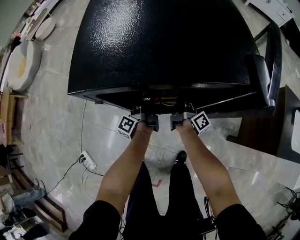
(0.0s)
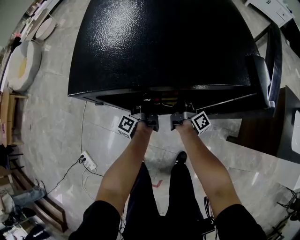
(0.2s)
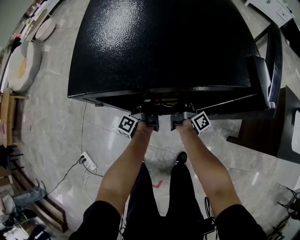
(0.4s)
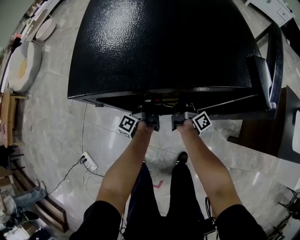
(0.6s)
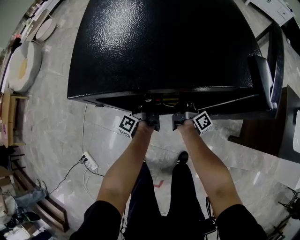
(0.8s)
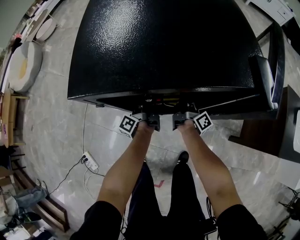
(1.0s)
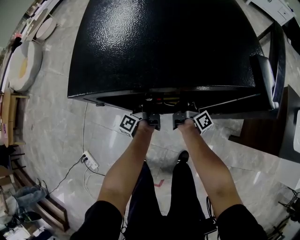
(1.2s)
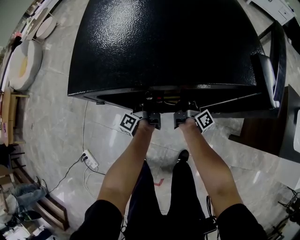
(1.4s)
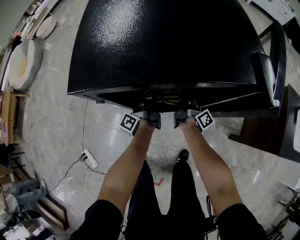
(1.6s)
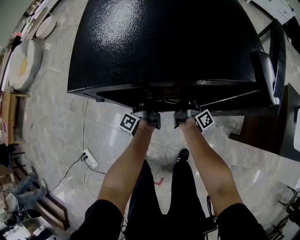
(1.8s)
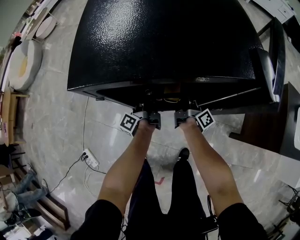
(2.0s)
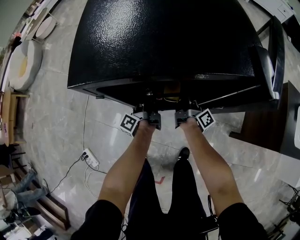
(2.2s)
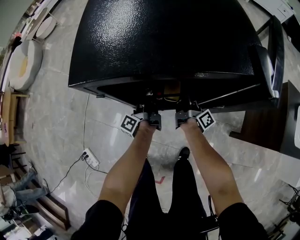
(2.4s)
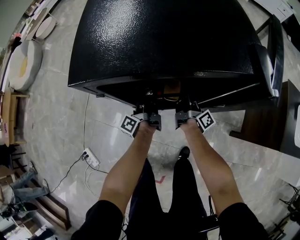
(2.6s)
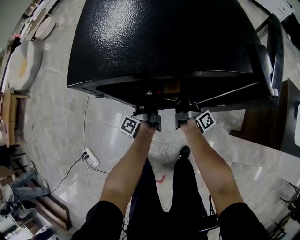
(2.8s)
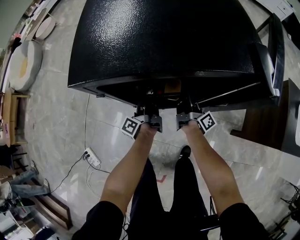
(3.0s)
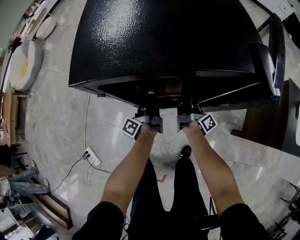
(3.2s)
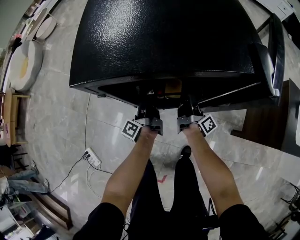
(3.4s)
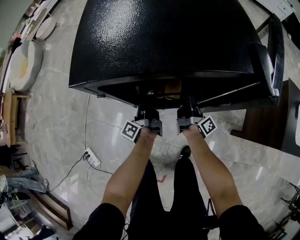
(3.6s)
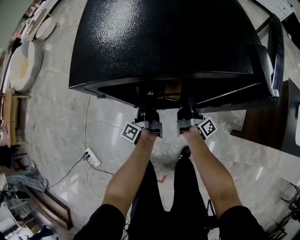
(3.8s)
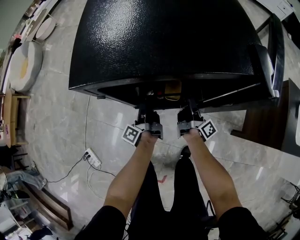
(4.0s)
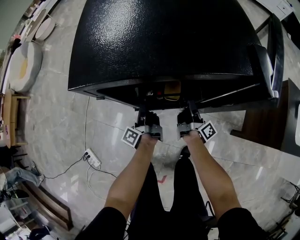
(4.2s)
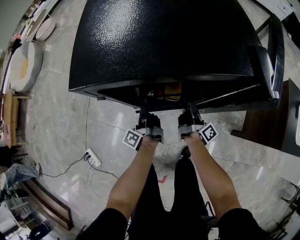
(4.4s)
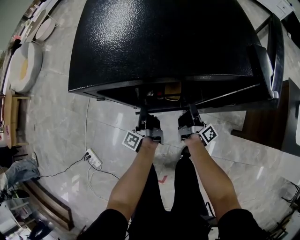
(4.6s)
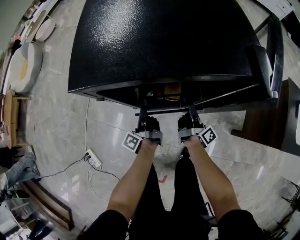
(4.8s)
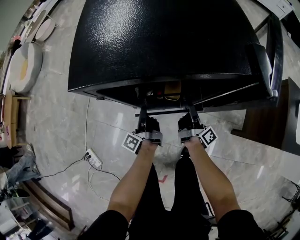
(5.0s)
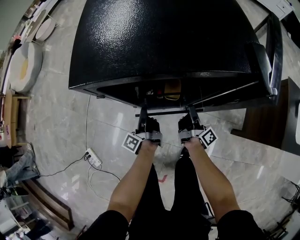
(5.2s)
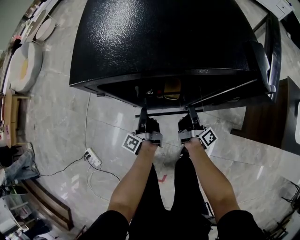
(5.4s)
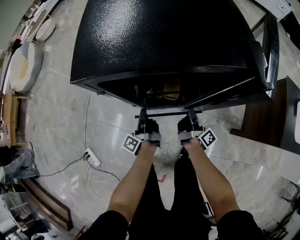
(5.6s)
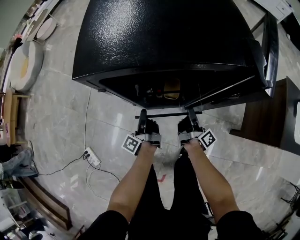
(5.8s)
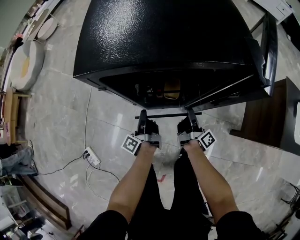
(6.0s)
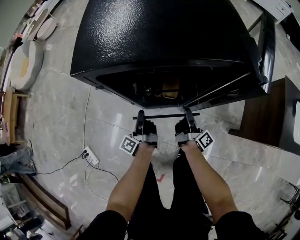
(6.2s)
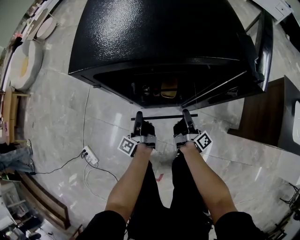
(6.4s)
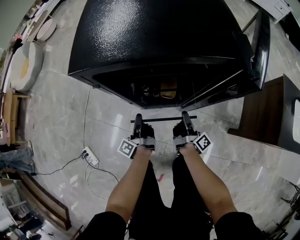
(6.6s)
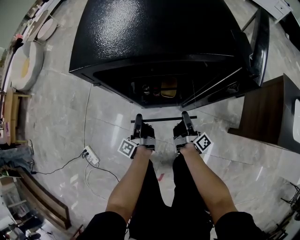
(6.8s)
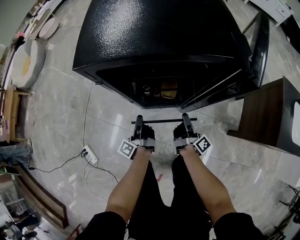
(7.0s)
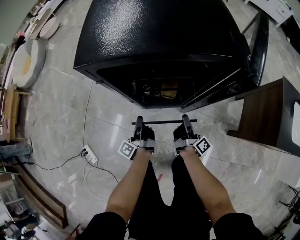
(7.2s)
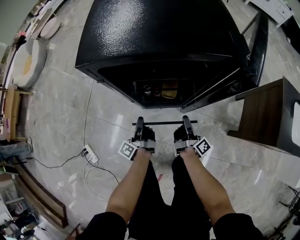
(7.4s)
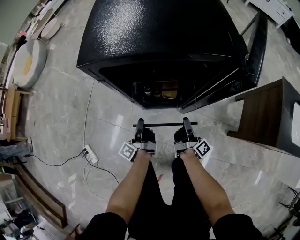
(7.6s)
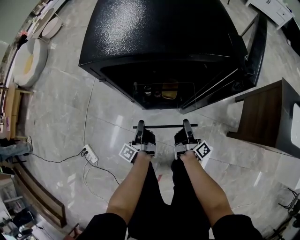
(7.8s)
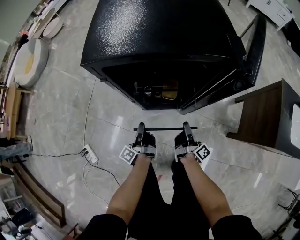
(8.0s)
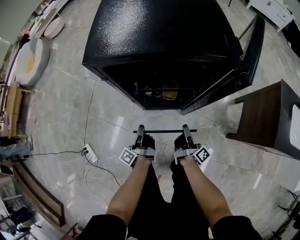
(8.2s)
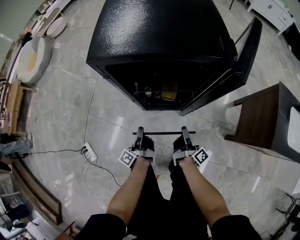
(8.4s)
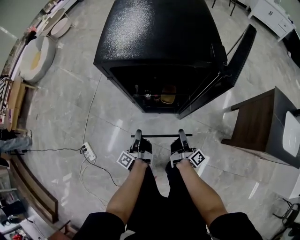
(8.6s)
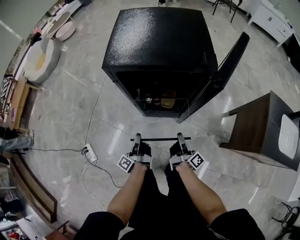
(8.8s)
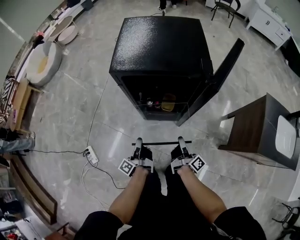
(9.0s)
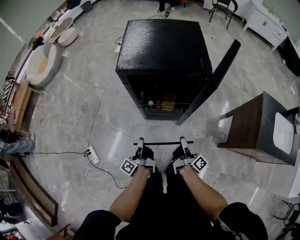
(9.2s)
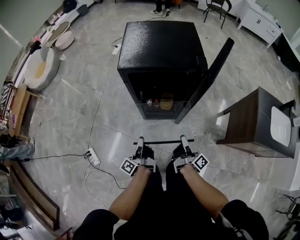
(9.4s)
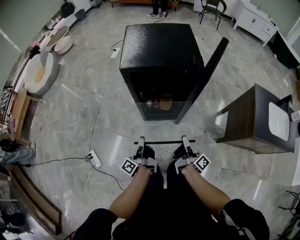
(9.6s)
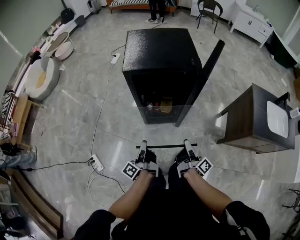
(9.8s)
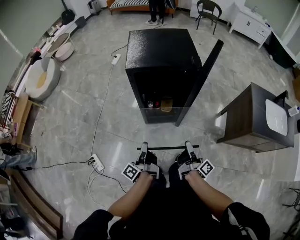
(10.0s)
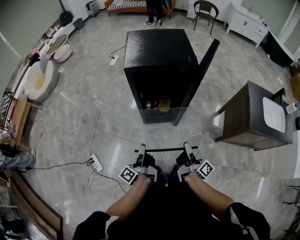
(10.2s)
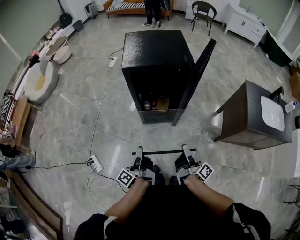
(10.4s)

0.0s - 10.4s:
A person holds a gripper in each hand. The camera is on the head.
0.0s - 1.4s: The left gripper closes.
1.4s - 3.0s: The grippers make only small movements.
3.0s - 4.4s: The grippers make only small movements.
4.4s - 6.0s: The right gripper heads backward, covering roughly 5 cm.
6.0s - 7.4s: The grippers both shift backward by roughly 5 cm.
7.4s - 9.0s: The right gripper shifts approximately 15 cm upward and backward. The left gripper moves backward and upward, approximately 15 cm.
9.0s - 10.4s: The left gripper heads upward and backward, covering some 20 cm. The right gripper goes roughly 25 cm backward and upward.

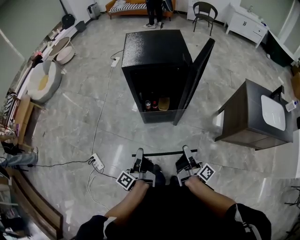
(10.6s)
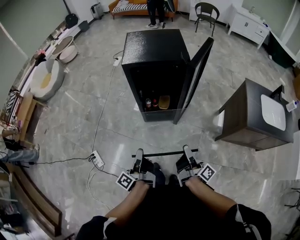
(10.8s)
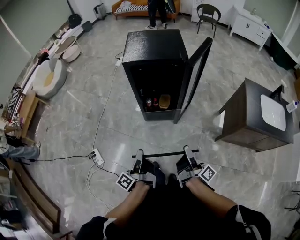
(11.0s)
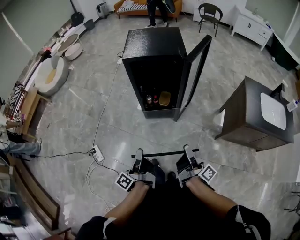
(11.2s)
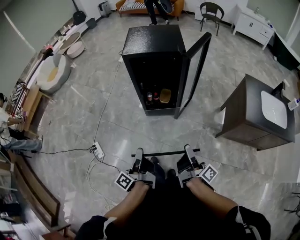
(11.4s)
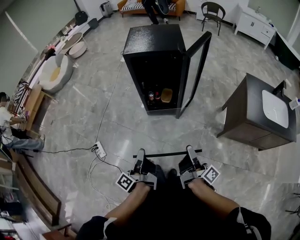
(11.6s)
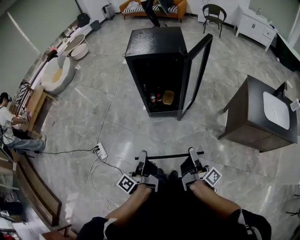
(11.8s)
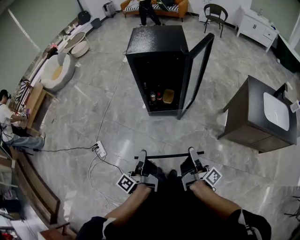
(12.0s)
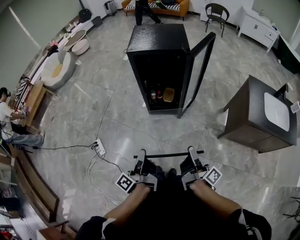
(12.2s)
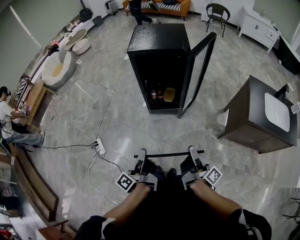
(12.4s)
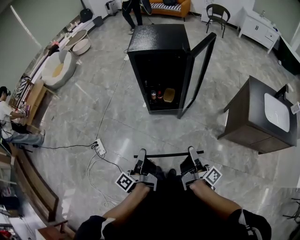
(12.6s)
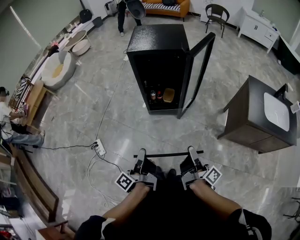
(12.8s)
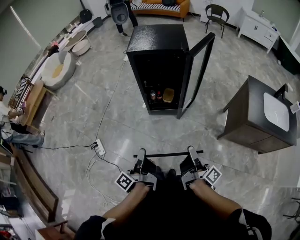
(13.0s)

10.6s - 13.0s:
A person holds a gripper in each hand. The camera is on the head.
10.6s - 11.8s: The right gripper travels backward and to the right by roughly 15 cm. The left gripper heads backward, covering about 15 cm.
11.8s - 13.0s: Both grippers stay about where they are.

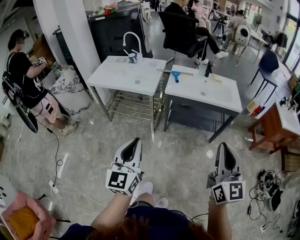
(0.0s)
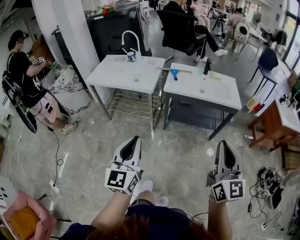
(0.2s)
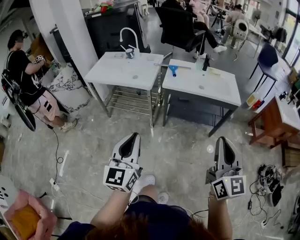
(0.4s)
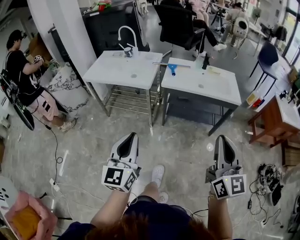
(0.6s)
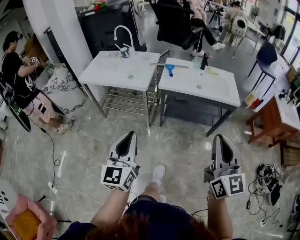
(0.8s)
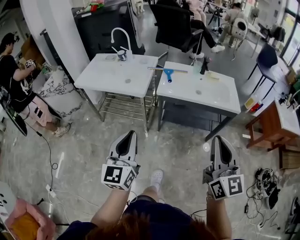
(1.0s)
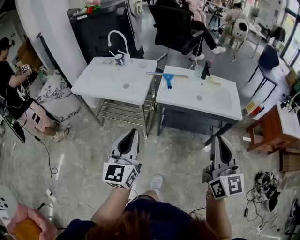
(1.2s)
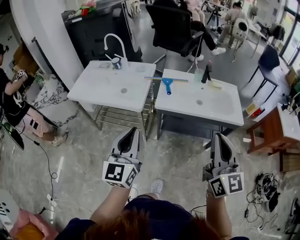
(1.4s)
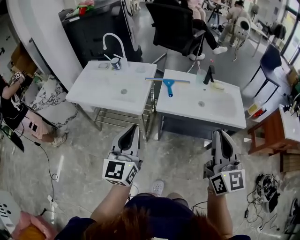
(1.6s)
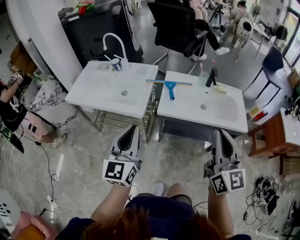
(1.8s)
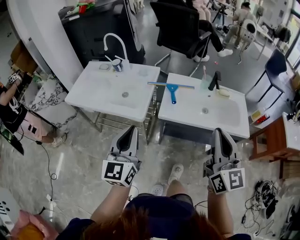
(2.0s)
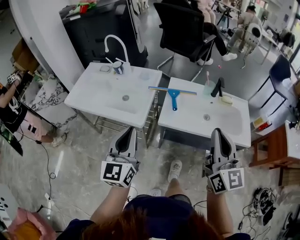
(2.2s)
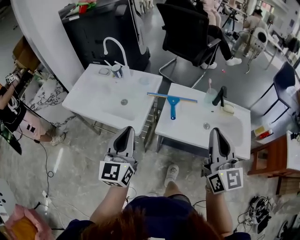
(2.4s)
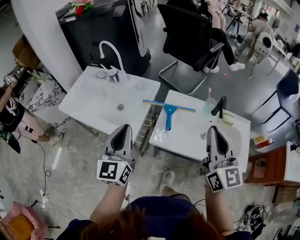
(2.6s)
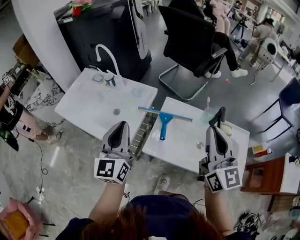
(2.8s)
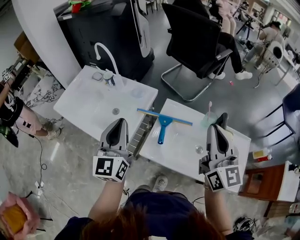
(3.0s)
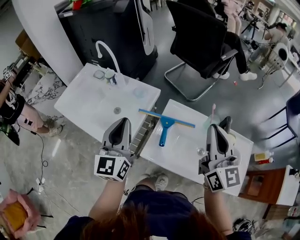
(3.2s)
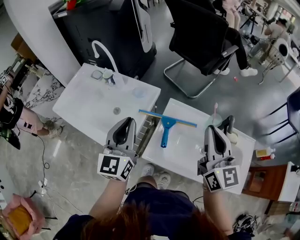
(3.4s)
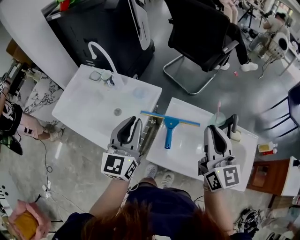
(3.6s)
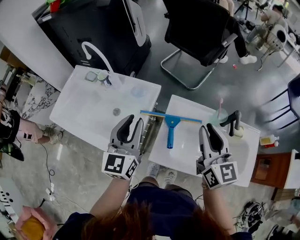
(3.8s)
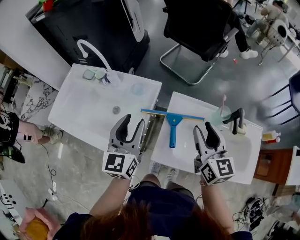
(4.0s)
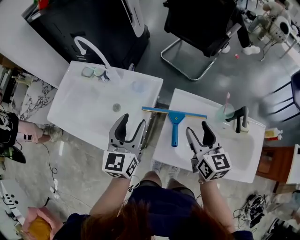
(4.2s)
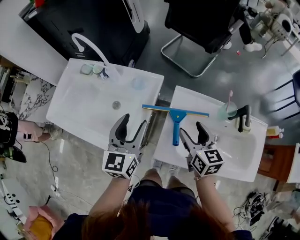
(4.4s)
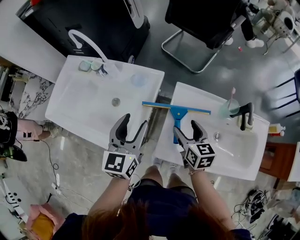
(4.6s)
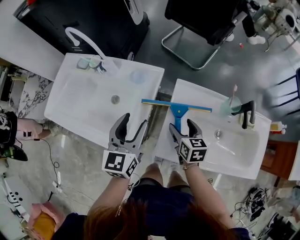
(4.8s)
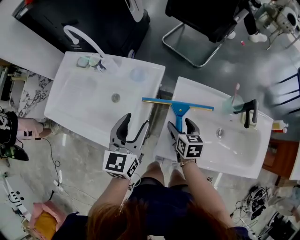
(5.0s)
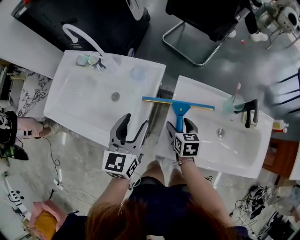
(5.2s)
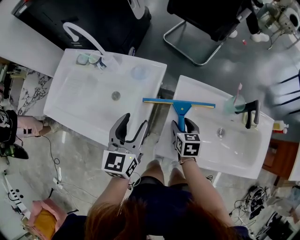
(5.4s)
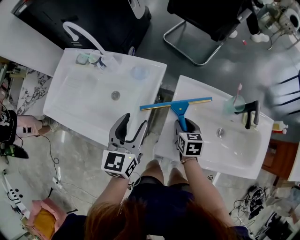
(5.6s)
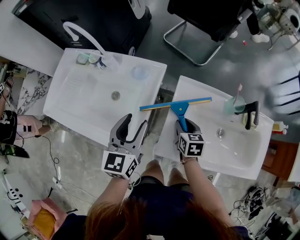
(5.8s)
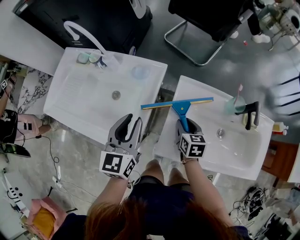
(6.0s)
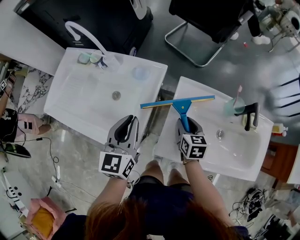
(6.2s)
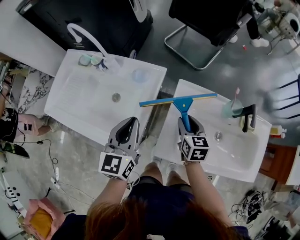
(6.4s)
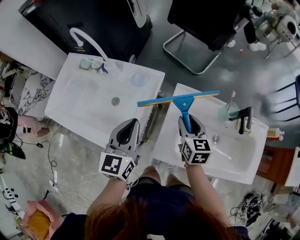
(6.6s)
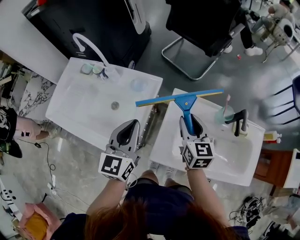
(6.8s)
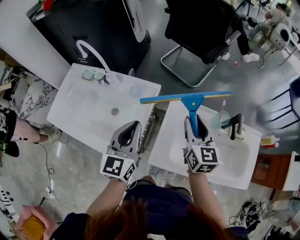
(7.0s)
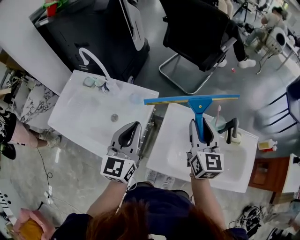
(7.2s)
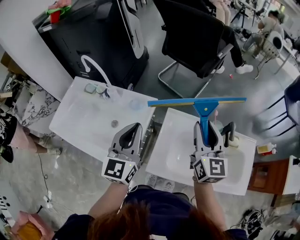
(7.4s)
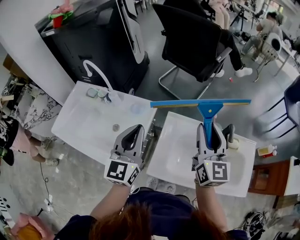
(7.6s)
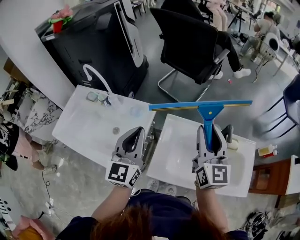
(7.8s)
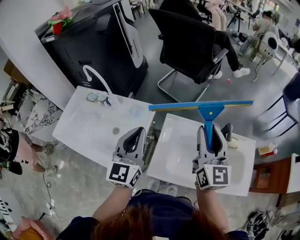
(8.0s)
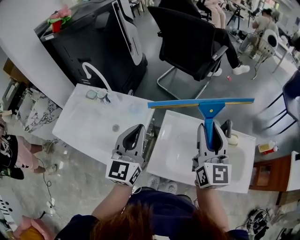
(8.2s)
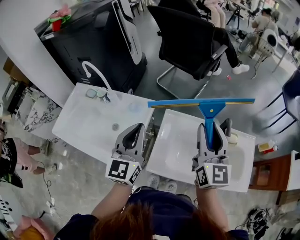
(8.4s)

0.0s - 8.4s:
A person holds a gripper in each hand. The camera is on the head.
0.0s - 1.4s: The two grippers go roughly 25 cm forward.
1.4s - 2.8s: Both grippers travel together forward, approximately 40 cm.
2.8s - 4.2s: The right gripper heads downward and forward, covering approximately 25 cm, rotates approximately 30 degrees, and opens. The left gripper goes about 20 cm forward and downward, and opens.
4.2s - 5.6s: The left gripper goes about 5 cm downward, while the right gripper moves downward, roughly 20 cm, and rotates about 30 degrees.
5.6s - 7.0s: The left gripper is displaced upward by roughly 10 cm, and closes up; the right gripper heads upward, covering about 25 cm, and tips its fingers upward by approximately 30 degrees.
7.0s - 8.4s: The left gripper heads upward, covering approximately 10 cm. Meanwhile the right gripper shifts some 15 cm upward and to the right, and swivels roughly 20 degrees.

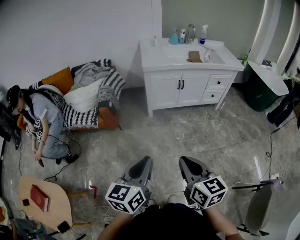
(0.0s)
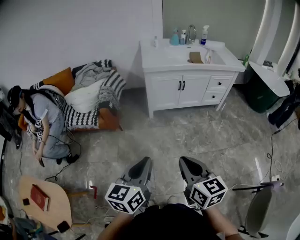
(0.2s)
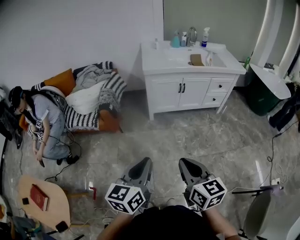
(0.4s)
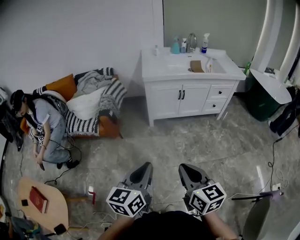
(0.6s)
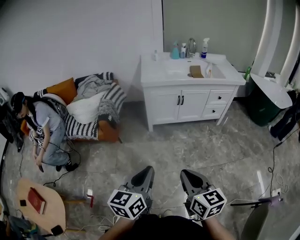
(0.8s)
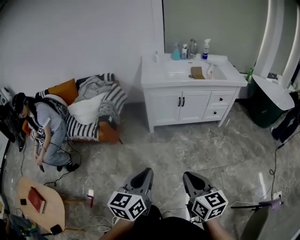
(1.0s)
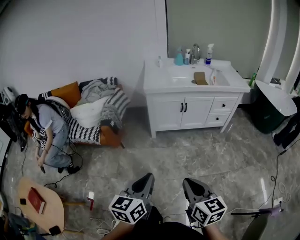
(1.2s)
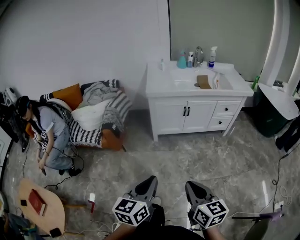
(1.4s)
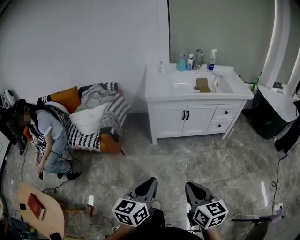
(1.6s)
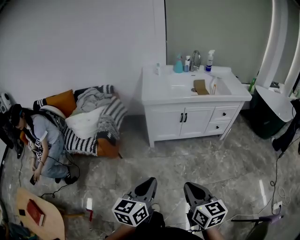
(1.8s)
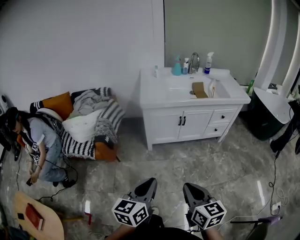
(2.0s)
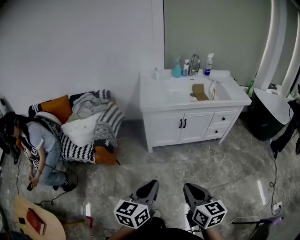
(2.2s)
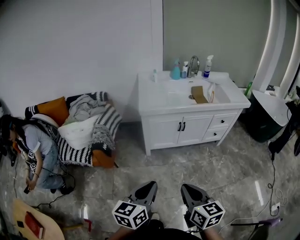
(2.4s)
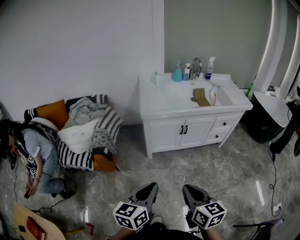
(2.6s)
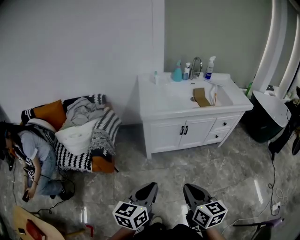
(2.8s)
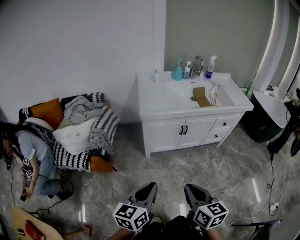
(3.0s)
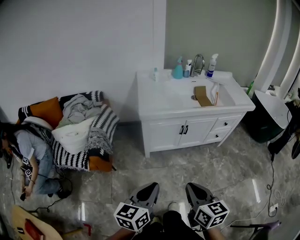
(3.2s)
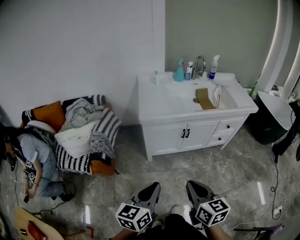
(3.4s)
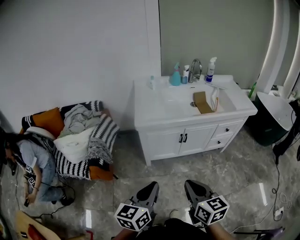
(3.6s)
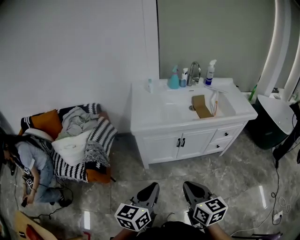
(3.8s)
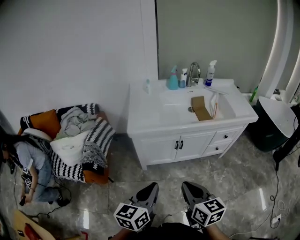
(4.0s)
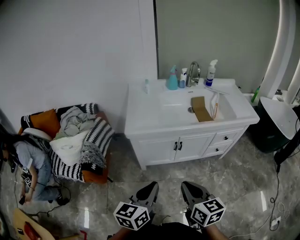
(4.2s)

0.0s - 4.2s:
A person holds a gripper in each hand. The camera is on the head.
0.0s - 1.4s: The grippers both shift to the right and forward by about 10 cm.
1.4s - 2.8s: The grippers both shift forward by about 20 cm.
2.8s - 4.2s: Both grippers travel together forward and to the right, some 20 cm.
